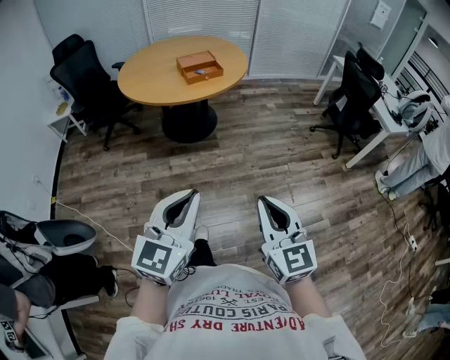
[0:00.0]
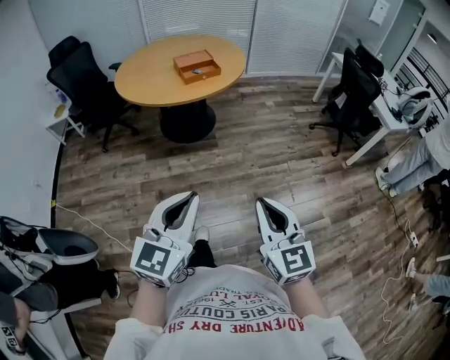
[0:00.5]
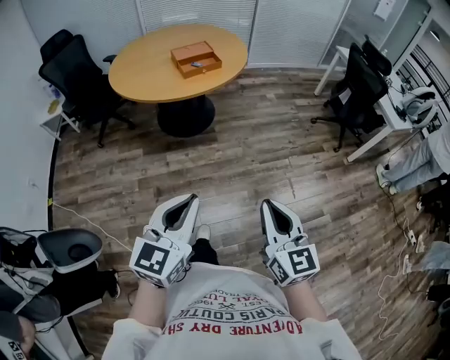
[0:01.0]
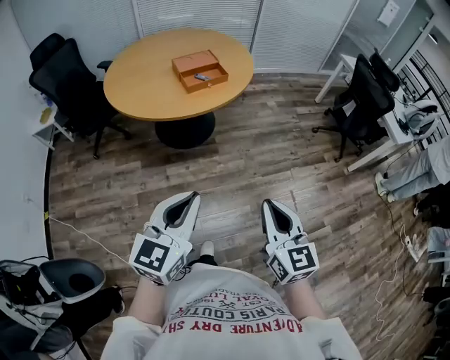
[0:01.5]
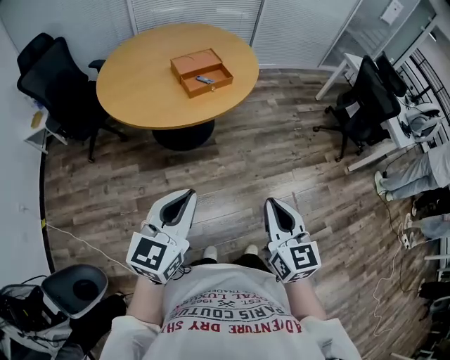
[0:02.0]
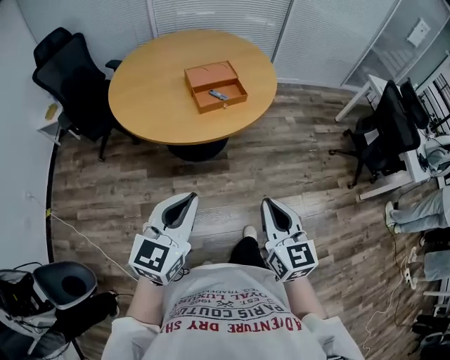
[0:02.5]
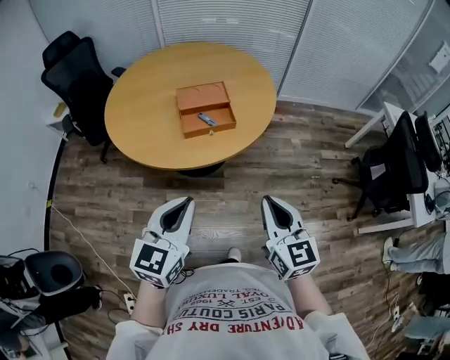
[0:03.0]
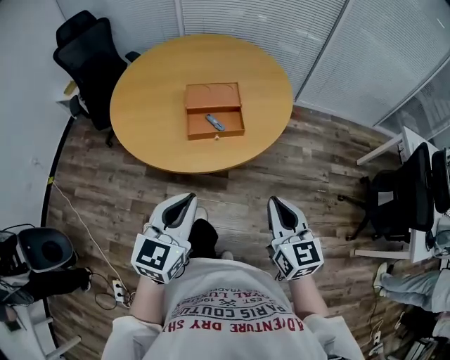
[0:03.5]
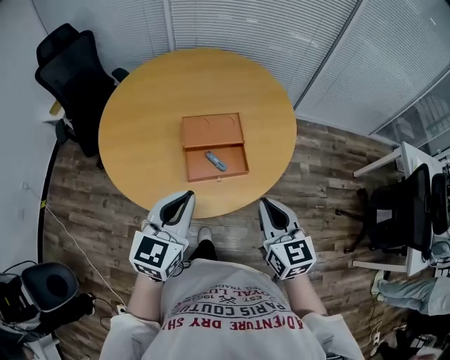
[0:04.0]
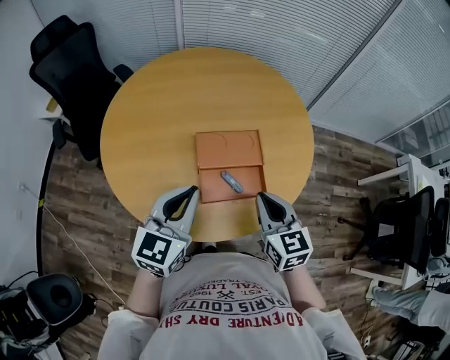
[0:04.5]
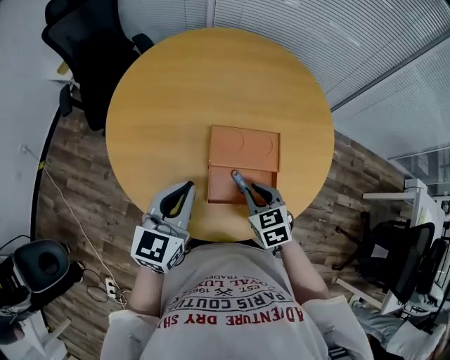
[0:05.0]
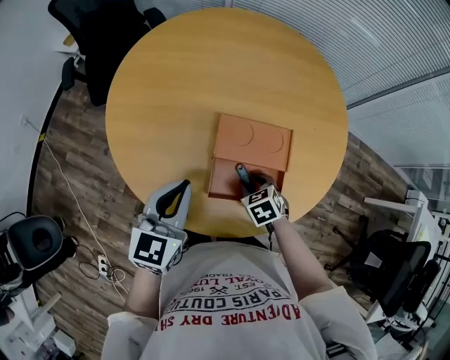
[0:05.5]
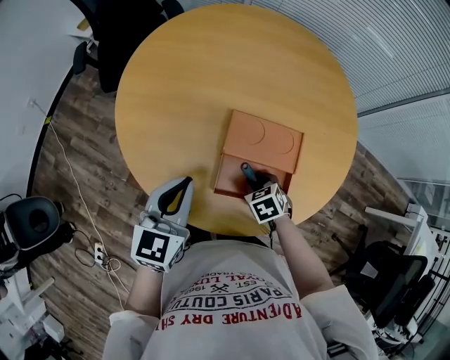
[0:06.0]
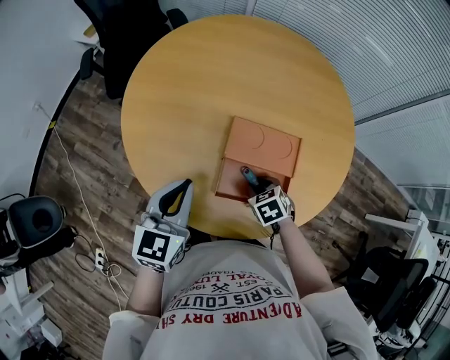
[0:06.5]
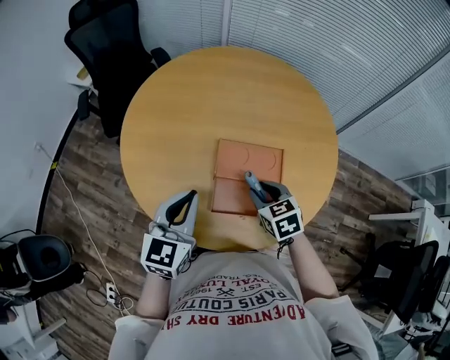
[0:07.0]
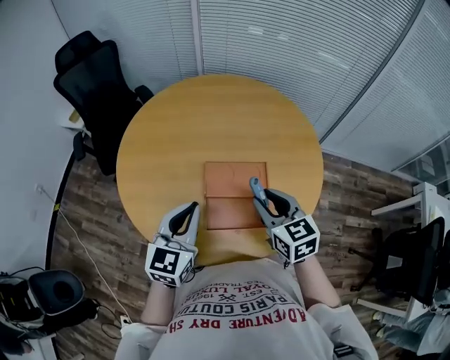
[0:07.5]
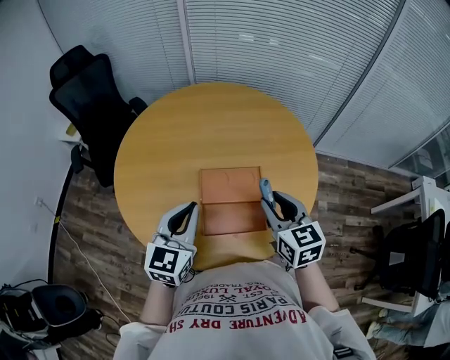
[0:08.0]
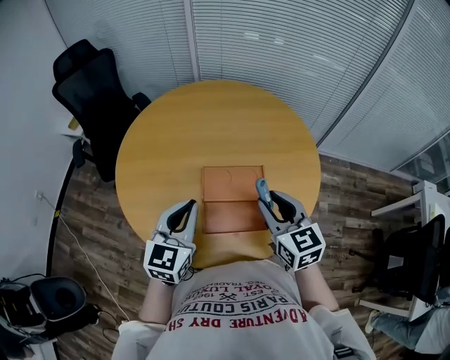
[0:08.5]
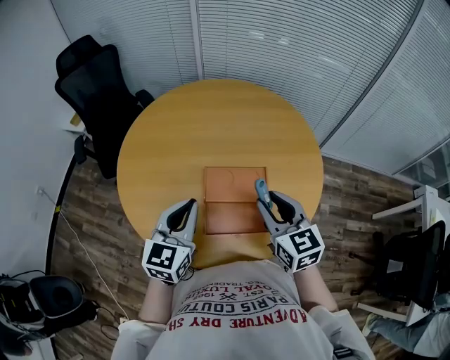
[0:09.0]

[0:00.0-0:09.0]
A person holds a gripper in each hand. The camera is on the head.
0:00.0 to 0:02.0: Both grippers move forward and to the left, approximately 30 cm.
0:02.0 to 0:04.5: The two grippers travel together, forward, about 60 cm. The right gripper rotates roughly 30 degrees. Meanwhile the left gripper turns by approximately 20 degrees.
0:04.5 to 0:07.0: The right gripper shifts about 15 cm forward and downward, rotates roughly 30 degrees, and opens.
0:07.0 to 0:09.0: The left gripper ends up some 5 cm from where it was. Meanwhile the right gripper travels upward by approximately 15 cm, and swivels approximately 30 degrees.

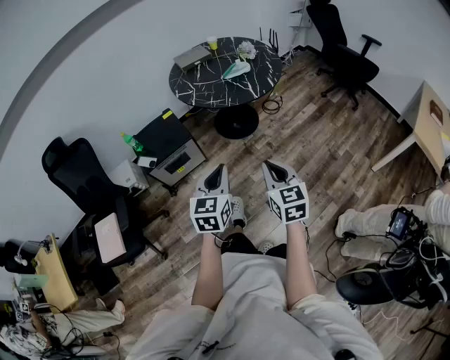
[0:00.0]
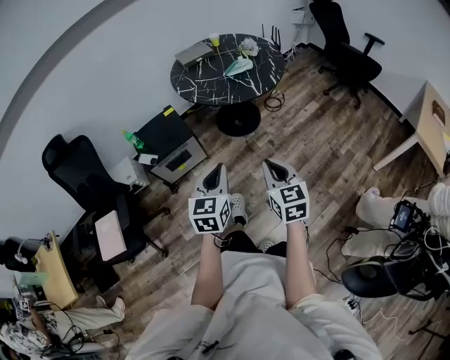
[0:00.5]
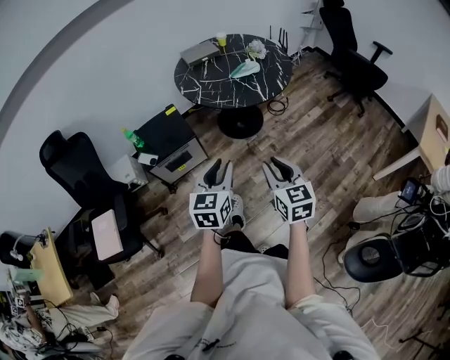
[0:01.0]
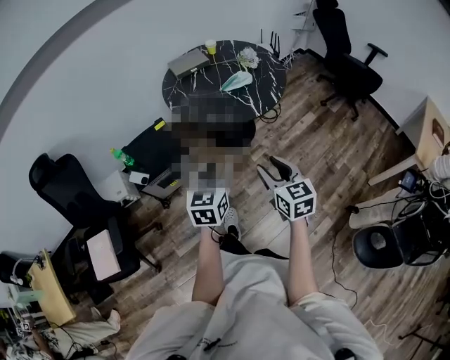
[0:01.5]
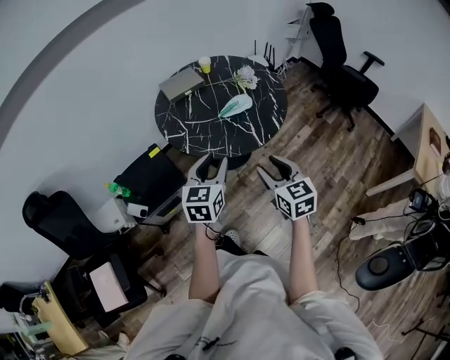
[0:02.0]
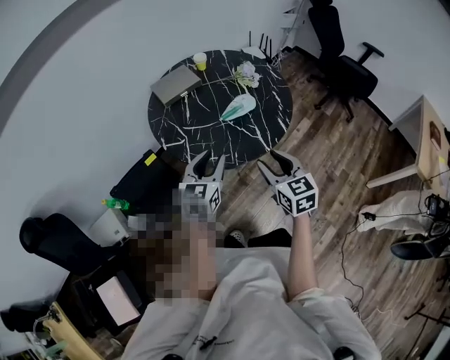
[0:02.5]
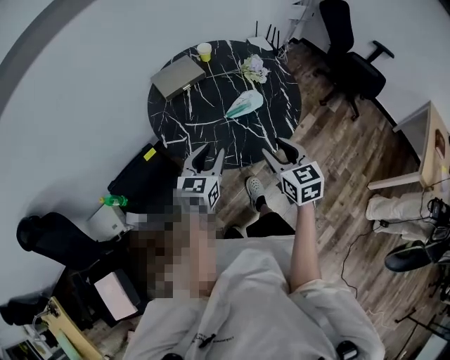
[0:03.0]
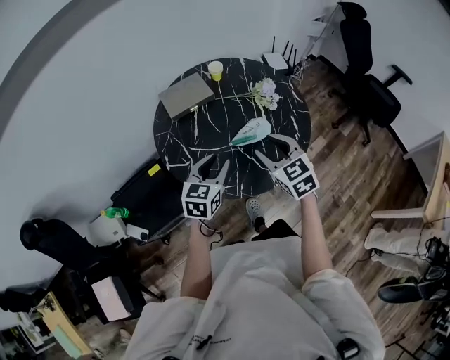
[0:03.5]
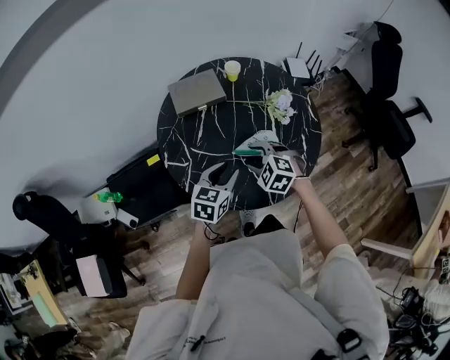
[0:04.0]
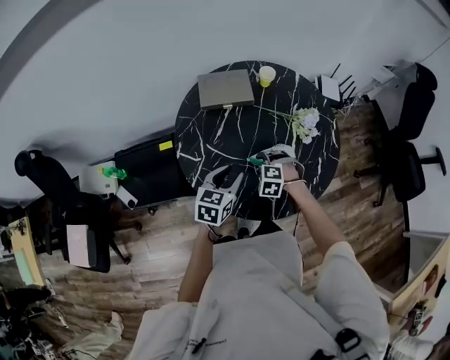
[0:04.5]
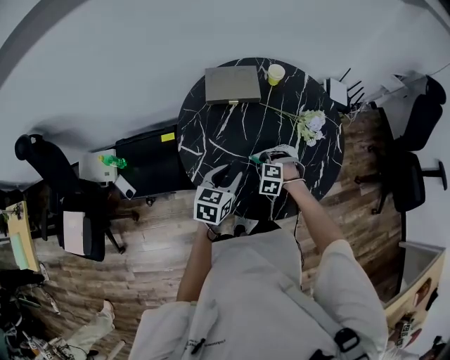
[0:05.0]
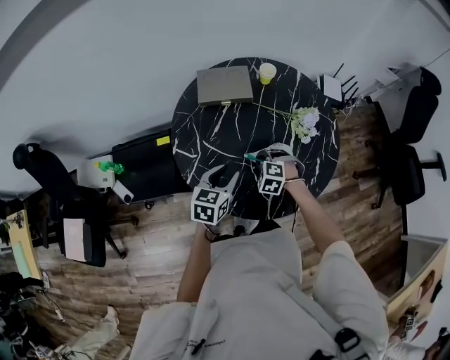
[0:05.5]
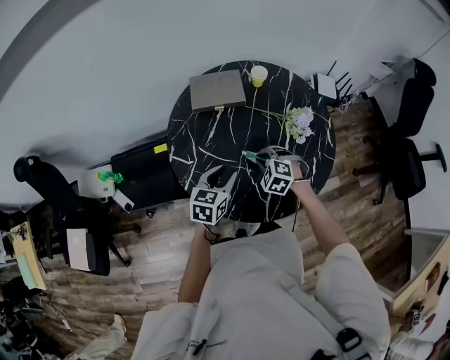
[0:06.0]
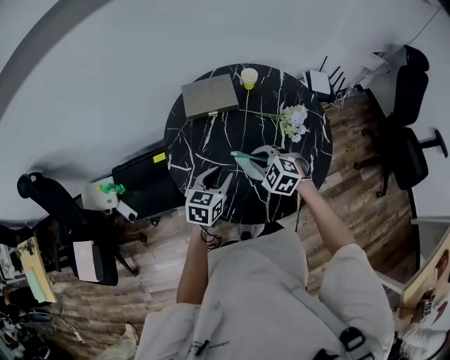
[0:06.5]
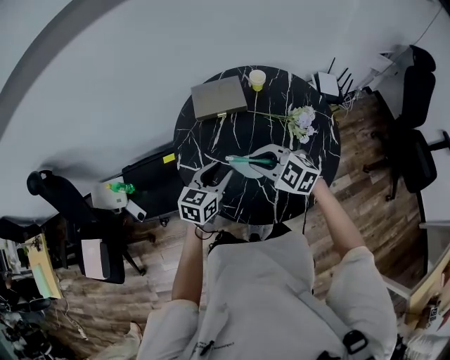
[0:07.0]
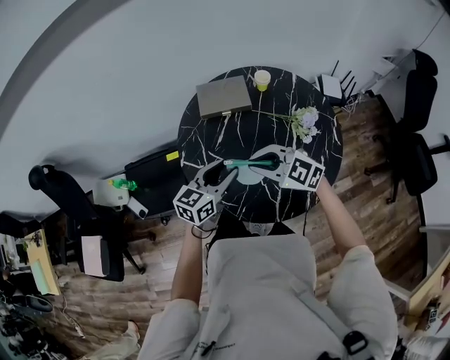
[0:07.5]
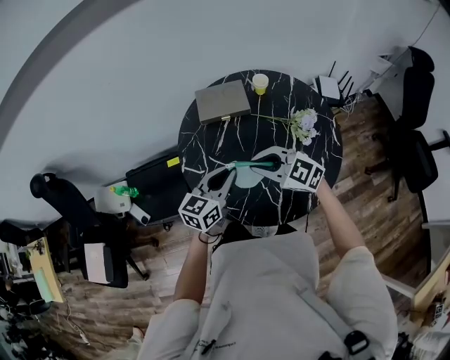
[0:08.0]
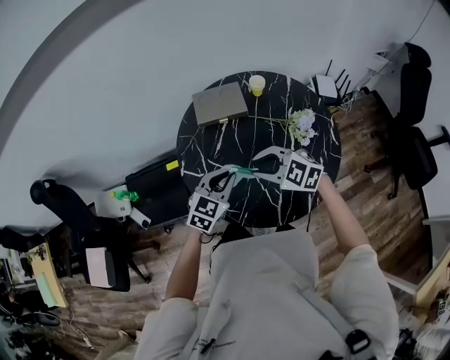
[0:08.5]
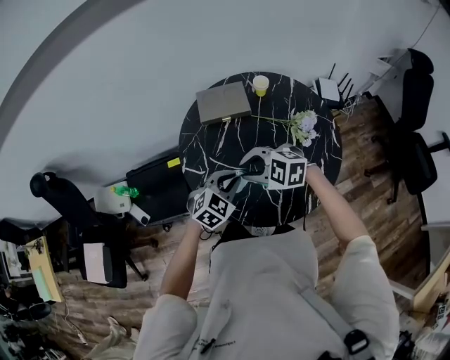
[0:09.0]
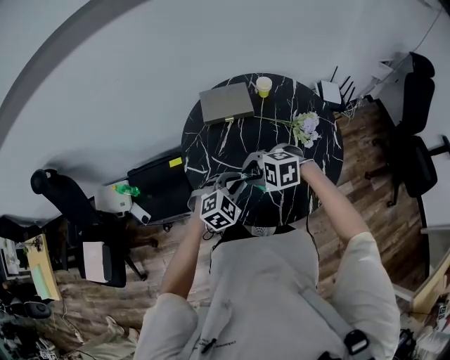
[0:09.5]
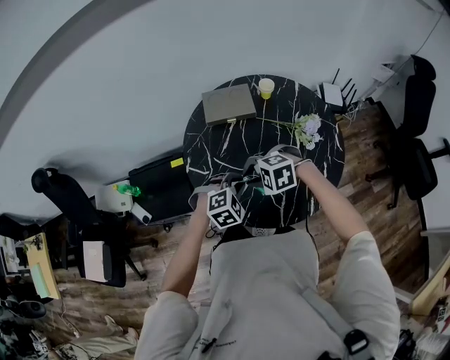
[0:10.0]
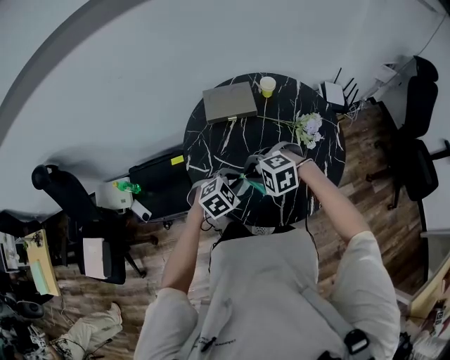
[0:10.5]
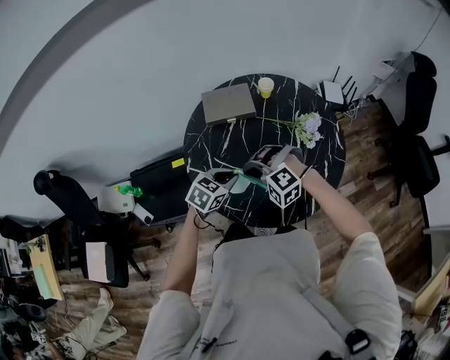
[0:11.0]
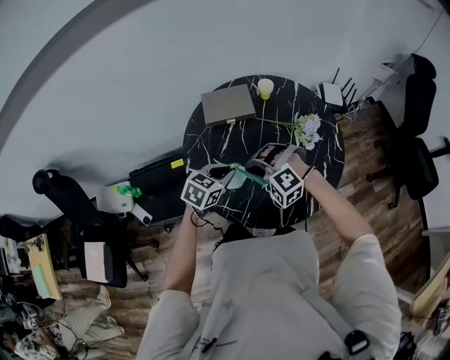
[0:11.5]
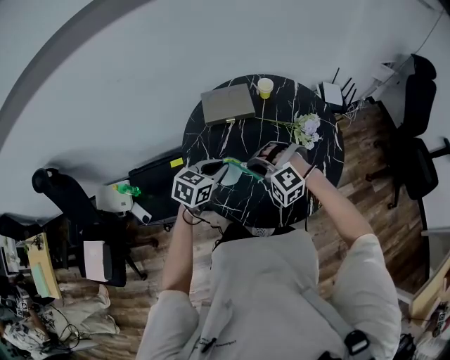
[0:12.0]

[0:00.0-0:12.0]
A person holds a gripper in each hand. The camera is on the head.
0:00.0 to 0:02.0: Both grippers travel together forward, approximately 35 cm. The right gripper opens its fingers; the left gripper opens.
0:02.0 to 0:04.0: The right gripper moves forward, approximately 40 cm, and tips its fingers downward by about 30 degrees, while the left gripper heads forward and downward, covering about 35 cm.
0:04.0 to 0:06.0: The right gripper is displaced downward and forward by roughly 10 cm, and closes up.
0:06.0 to 0:08.0: The left gripper goes some 10 cm upward, rotates some 20 degrees, and closes up, while the right gripper is displaced upward by roughly 15 cm, and points its fingers some 40 degrees further upward.
0:08.0 to 0:10.0: Both grippers move downward, roughly 10 cm. The right gripper tips its fingers downward by some 40 degrees. Meanwhile the left gripper points its fingers about 40 degrees further downward.
0:10.0 to 0:12.0: The right gripper changes its angle by roughly 40 degrees; the left gripper ends up approximately 10 cm from where it was, and rolls counterclockwise, seen from behind, by approximately 40 degrees.

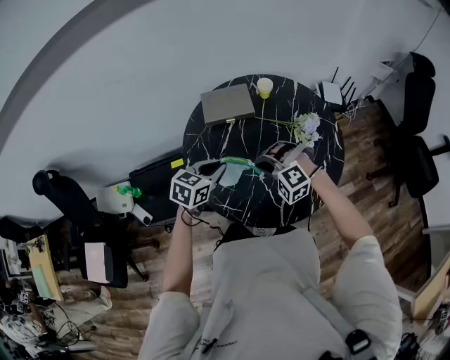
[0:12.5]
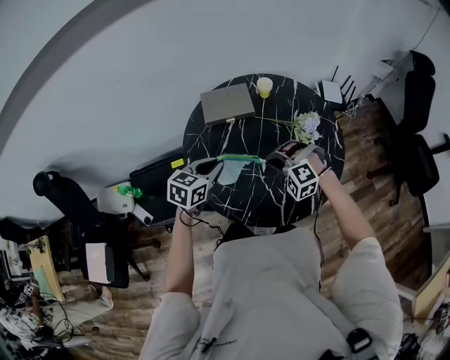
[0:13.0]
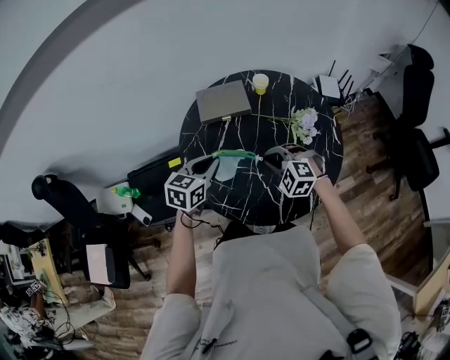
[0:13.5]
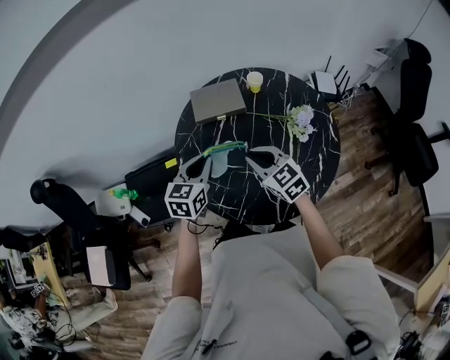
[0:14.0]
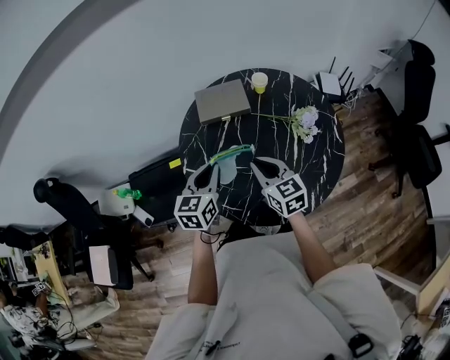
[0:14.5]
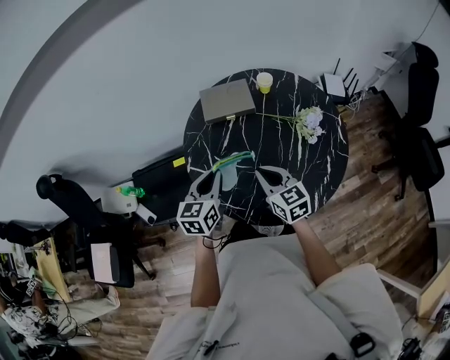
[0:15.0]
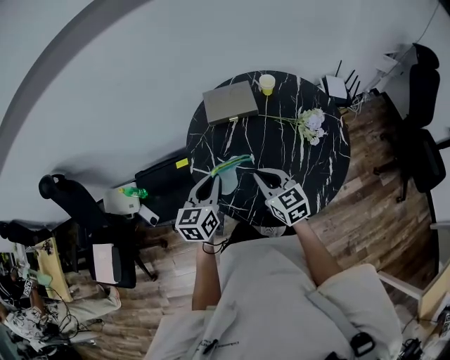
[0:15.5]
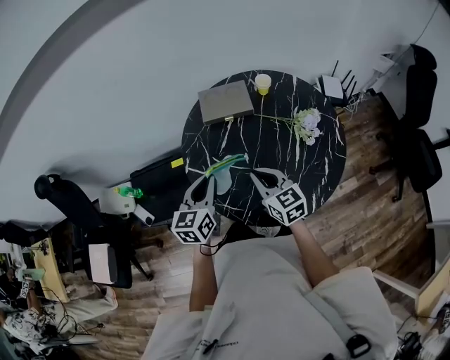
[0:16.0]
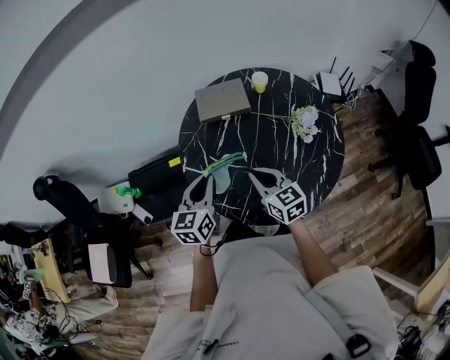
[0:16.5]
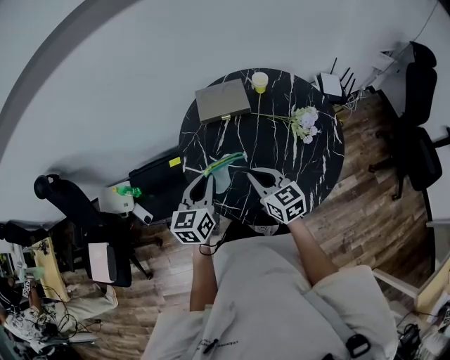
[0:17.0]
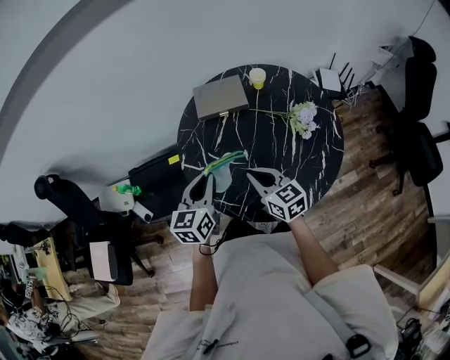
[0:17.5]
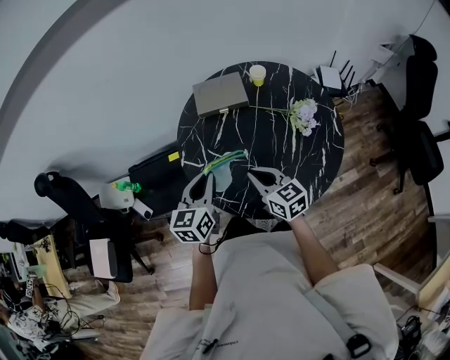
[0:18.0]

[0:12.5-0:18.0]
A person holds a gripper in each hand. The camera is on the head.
0:12.5 to 0:14.5: The right gripper rolls clockwise, seen from behind, by roughly 90 degrees, while the left gripper turns by about 30 degrees.
0:14.5 to 0:18.0: There are only small adjustments of the grippers.
